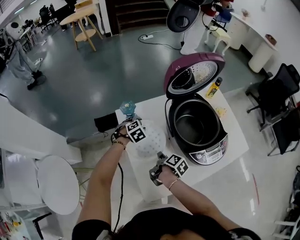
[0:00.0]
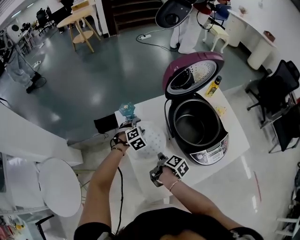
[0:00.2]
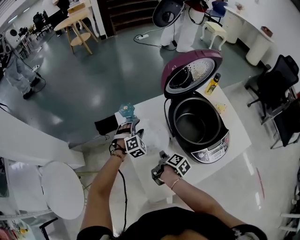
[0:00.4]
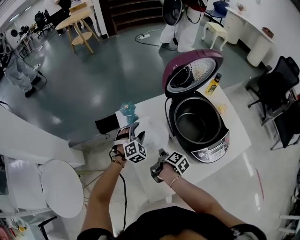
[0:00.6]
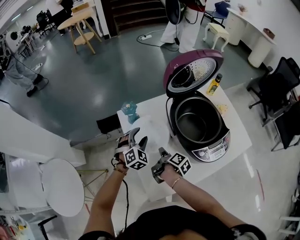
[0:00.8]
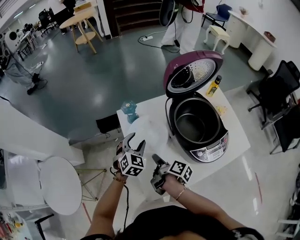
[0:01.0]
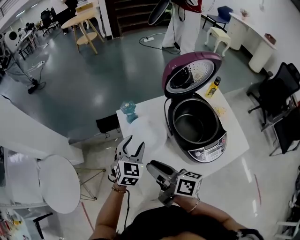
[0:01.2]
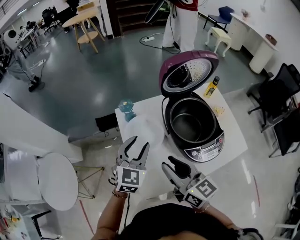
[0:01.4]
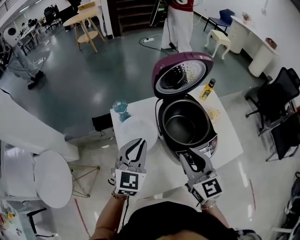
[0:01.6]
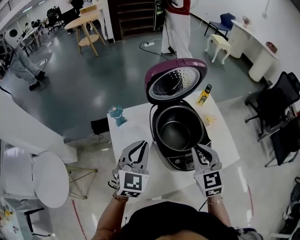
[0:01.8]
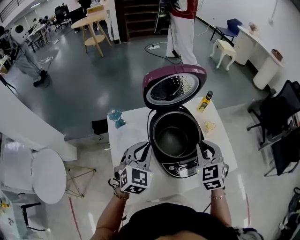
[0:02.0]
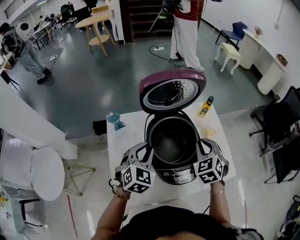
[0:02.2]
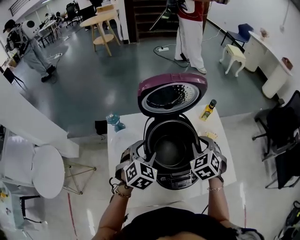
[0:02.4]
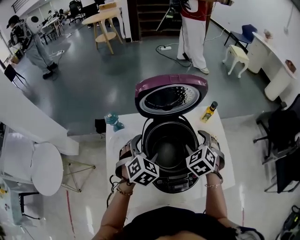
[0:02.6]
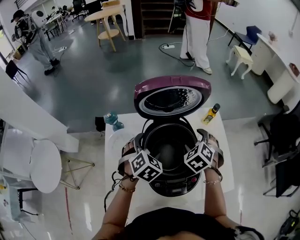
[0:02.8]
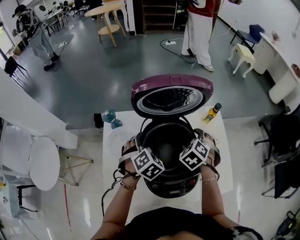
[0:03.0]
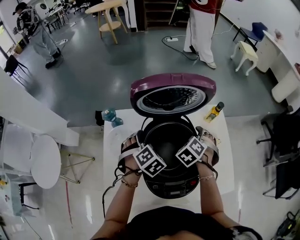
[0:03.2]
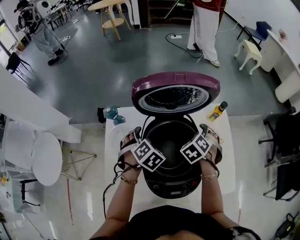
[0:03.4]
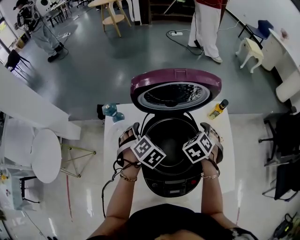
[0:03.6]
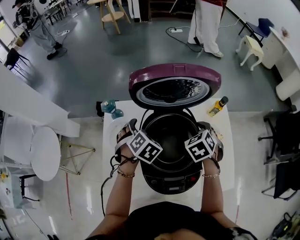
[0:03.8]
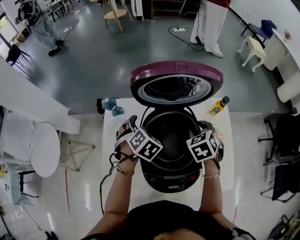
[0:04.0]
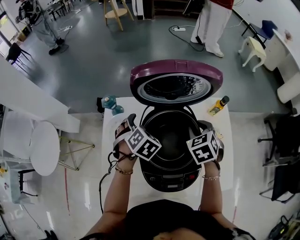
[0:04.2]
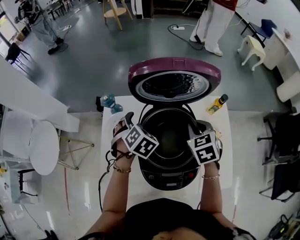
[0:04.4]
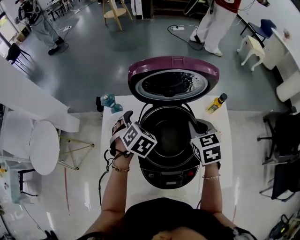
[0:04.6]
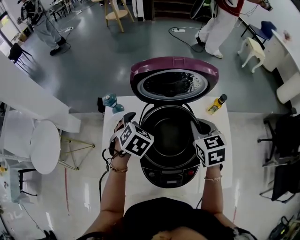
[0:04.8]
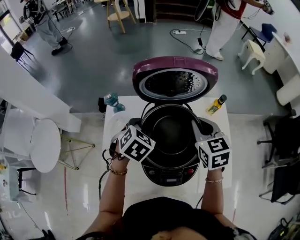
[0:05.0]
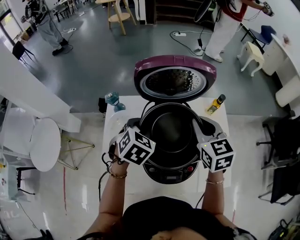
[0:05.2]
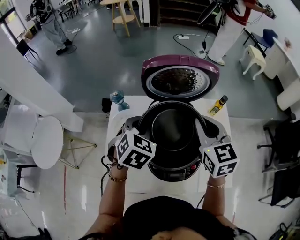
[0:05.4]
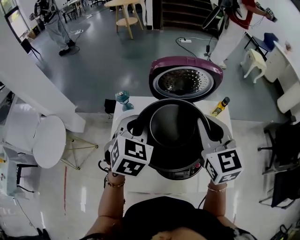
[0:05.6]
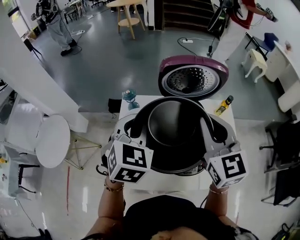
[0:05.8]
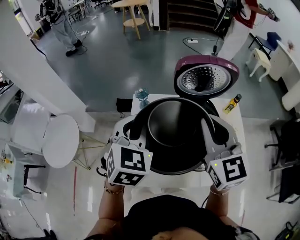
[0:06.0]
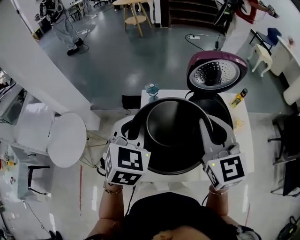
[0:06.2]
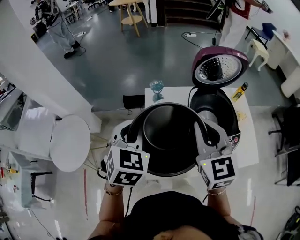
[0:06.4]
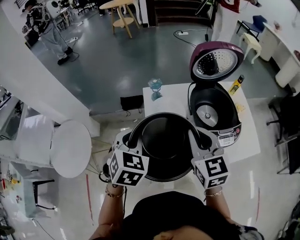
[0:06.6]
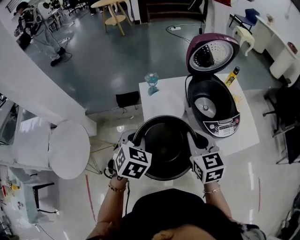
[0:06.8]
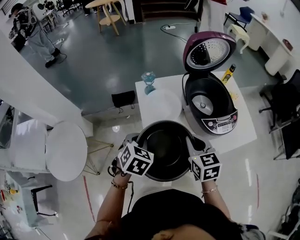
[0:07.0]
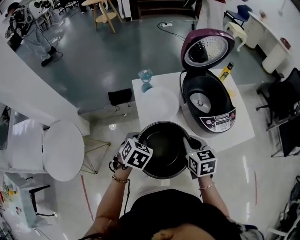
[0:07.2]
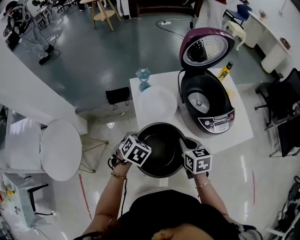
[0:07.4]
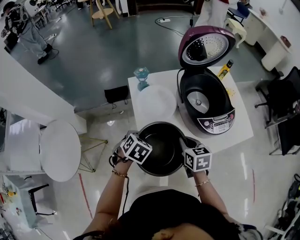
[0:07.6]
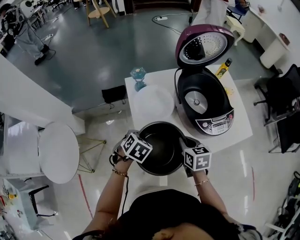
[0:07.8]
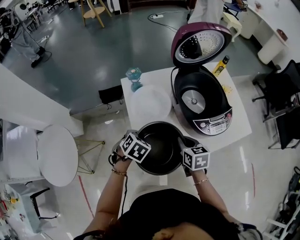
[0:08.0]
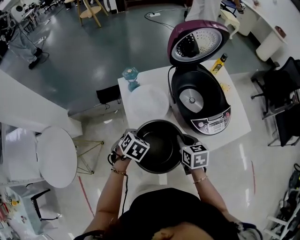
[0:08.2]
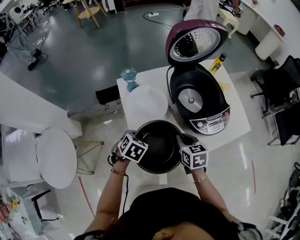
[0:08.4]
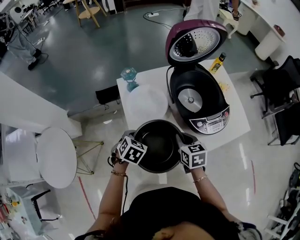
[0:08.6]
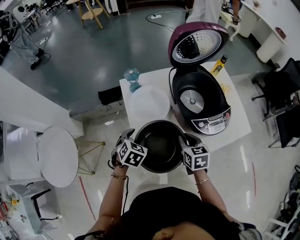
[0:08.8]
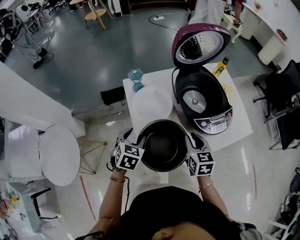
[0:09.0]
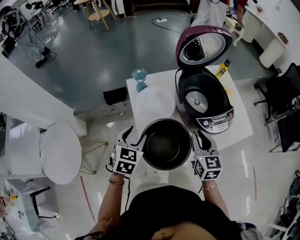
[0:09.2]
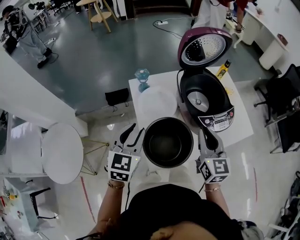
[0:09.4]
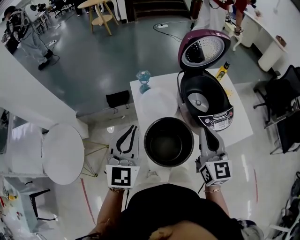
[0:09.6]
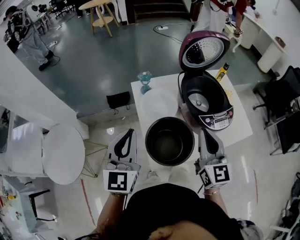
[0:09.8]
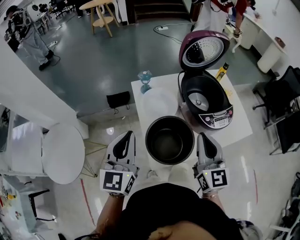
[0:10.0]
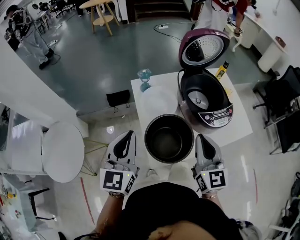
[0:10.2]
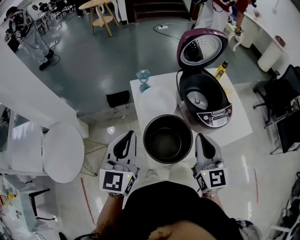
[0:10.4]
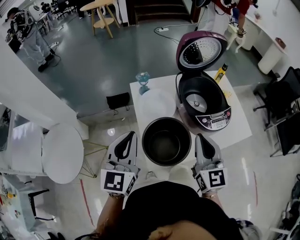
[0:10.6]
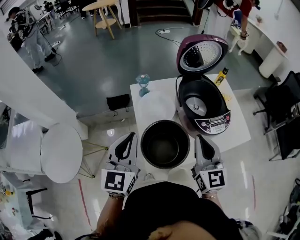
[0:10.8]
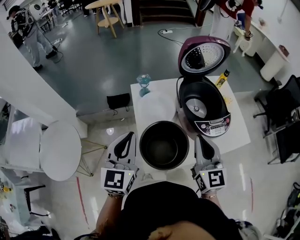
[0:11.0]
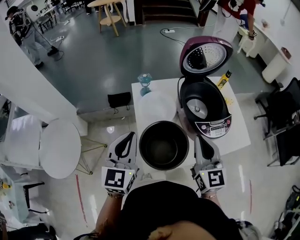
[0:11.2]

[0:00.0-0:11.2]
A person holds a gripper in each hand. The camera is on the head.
0:00.0 to 0:01.6: The right gripper travels upward by about 30 cm, and rotates around the line of its fingers by roughly 90 degrees, counterclockwise from behind; the left gripper moves upward and backward, about 30 cm, and points its fingers approximately 40 degrees further upward.
0:01.6 to 0:03.2: The grippers both shift forward, downward and to the right by some 25 cm. The right gripper points its fingers about 50 degrees further downward, and opens. Meanwhile the left gripper angles its fingers downward, by roughly 40 degrees, and opens up.
0:03.2 to 0:04.8: The left gripper moves about 5 cm, and changes its angle by roughly 20 degrees. Meanwhile the right gripper is displaced upward by some 10 cm, changes its angle by some 50 degrees, and closes.
0:04.8 to 0:06.4: Both grippers travel together to the left, upward and backward, approximately 35 cm. The right gripper swivels roughly 20 degrees, while the left gripper turns by about 20 degrees, and closes up.
0:06.4 to 0:08.0: The two grippers go some 30 cm downward. The right gripper tilts its fingers about 30 degrees downward. The left gripper angles its fingers downward, by roughly 30 degrees.
0:08.0 to 0:09.6: The grippers both shift upward by roughly 25 cm. The right gripper tilts its fingers about 40 degrees upward. The left gripper points its fingers roughly 60 degrees further upward, and opens and closes again.
0:09.6 to 0:11.2: There are only small adjustments of the grippers.

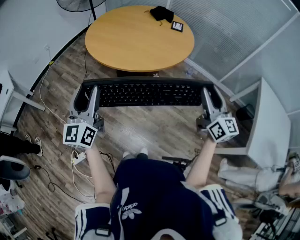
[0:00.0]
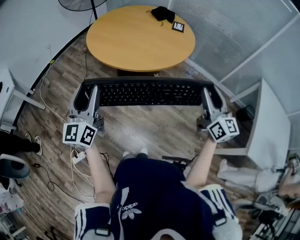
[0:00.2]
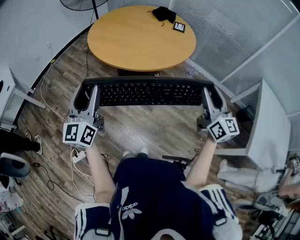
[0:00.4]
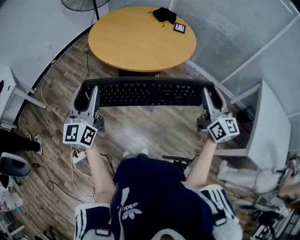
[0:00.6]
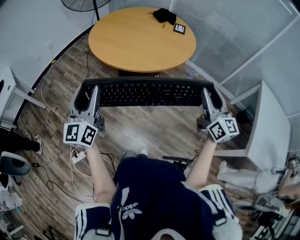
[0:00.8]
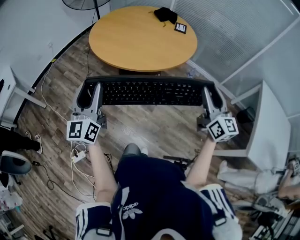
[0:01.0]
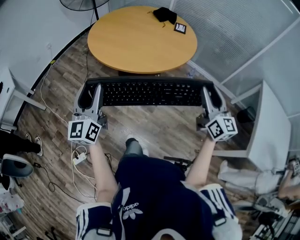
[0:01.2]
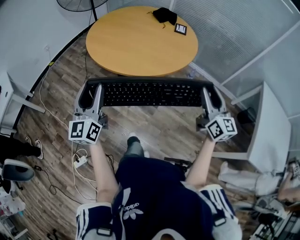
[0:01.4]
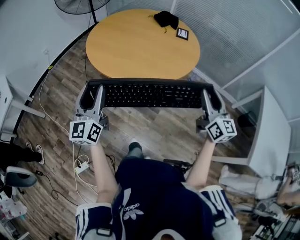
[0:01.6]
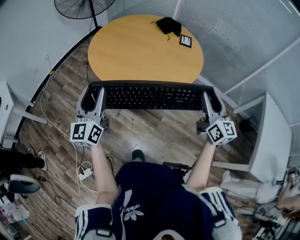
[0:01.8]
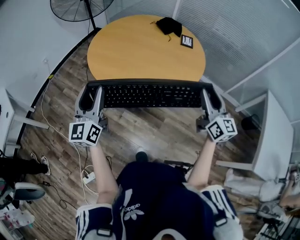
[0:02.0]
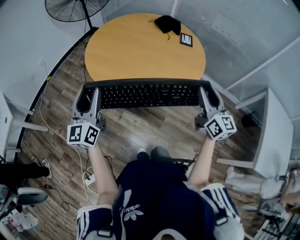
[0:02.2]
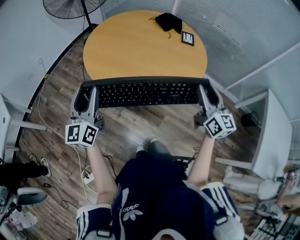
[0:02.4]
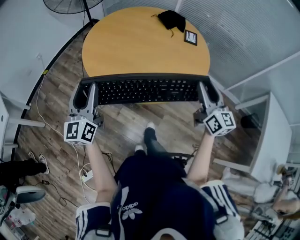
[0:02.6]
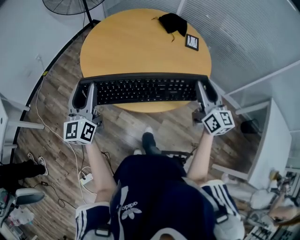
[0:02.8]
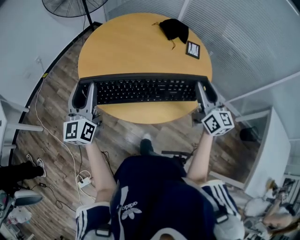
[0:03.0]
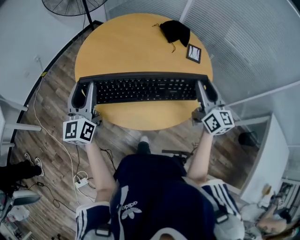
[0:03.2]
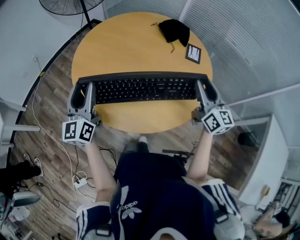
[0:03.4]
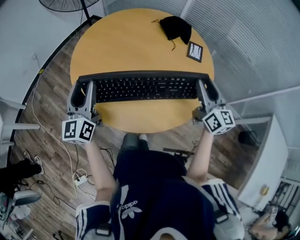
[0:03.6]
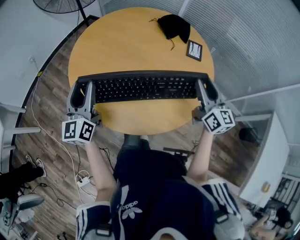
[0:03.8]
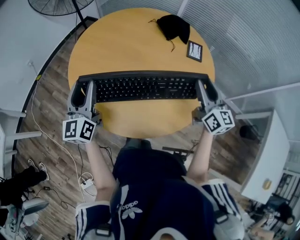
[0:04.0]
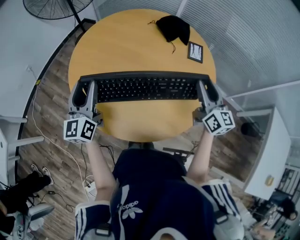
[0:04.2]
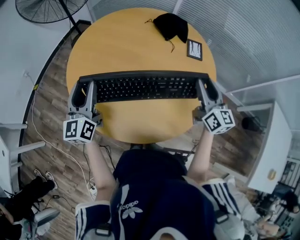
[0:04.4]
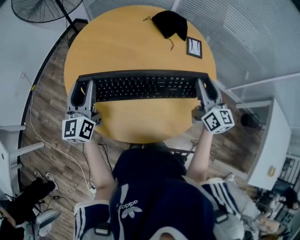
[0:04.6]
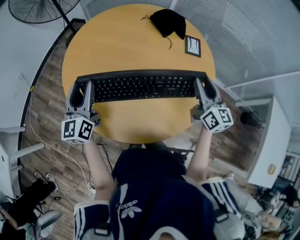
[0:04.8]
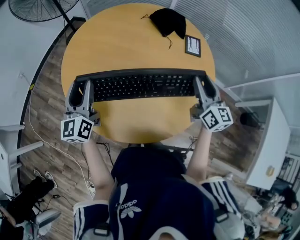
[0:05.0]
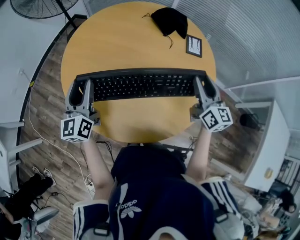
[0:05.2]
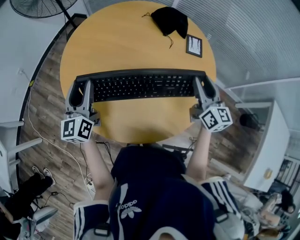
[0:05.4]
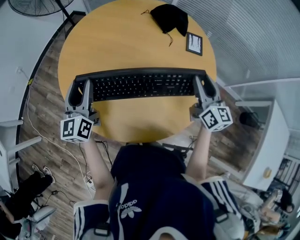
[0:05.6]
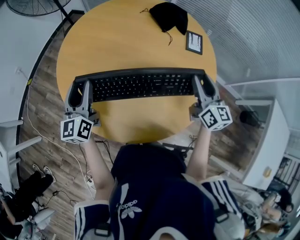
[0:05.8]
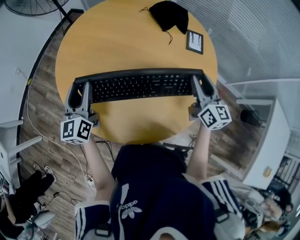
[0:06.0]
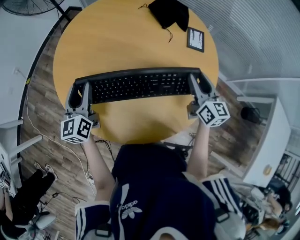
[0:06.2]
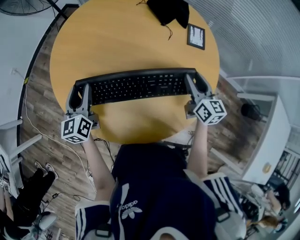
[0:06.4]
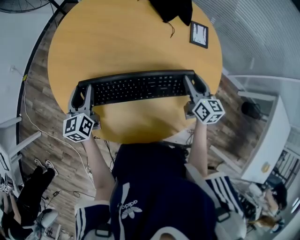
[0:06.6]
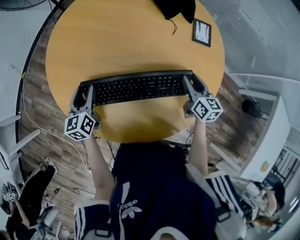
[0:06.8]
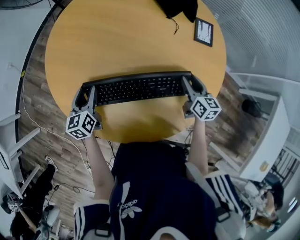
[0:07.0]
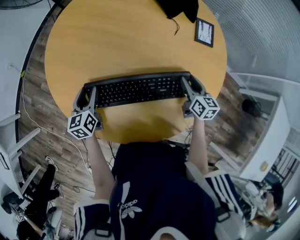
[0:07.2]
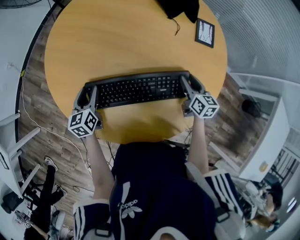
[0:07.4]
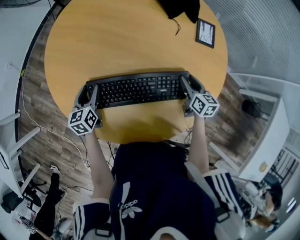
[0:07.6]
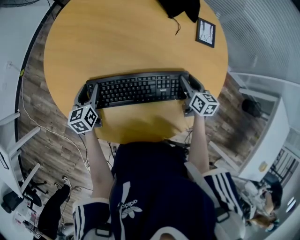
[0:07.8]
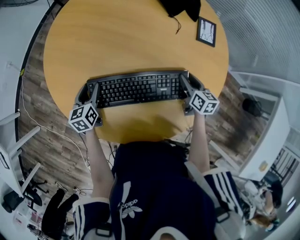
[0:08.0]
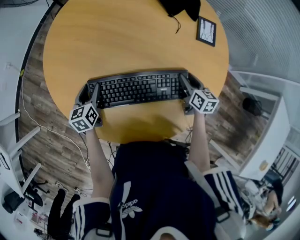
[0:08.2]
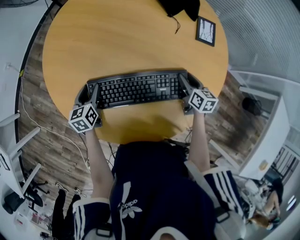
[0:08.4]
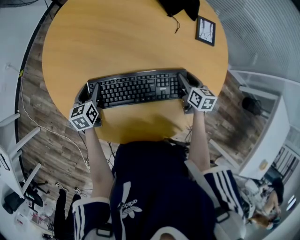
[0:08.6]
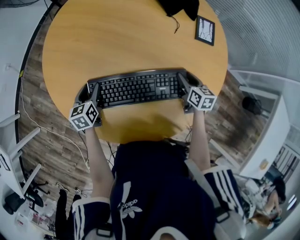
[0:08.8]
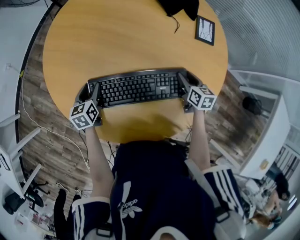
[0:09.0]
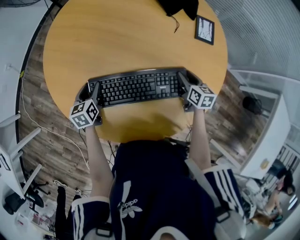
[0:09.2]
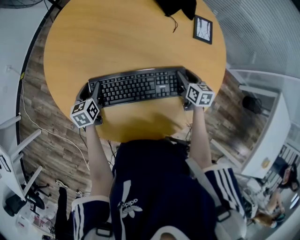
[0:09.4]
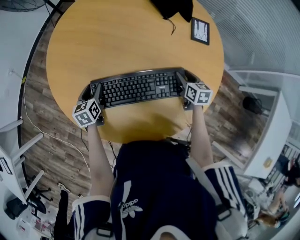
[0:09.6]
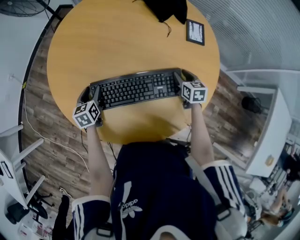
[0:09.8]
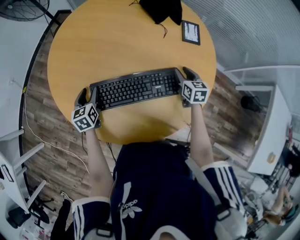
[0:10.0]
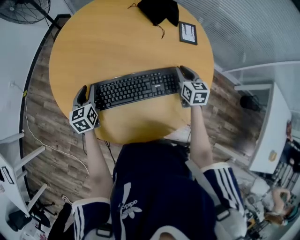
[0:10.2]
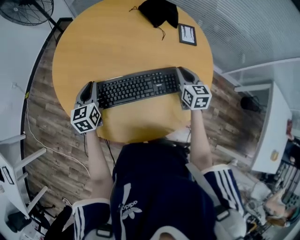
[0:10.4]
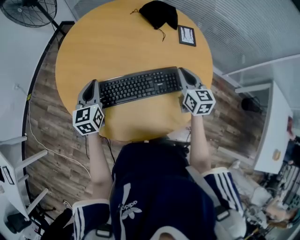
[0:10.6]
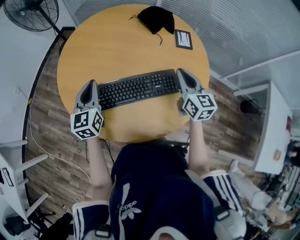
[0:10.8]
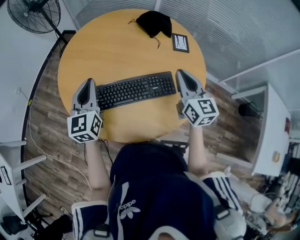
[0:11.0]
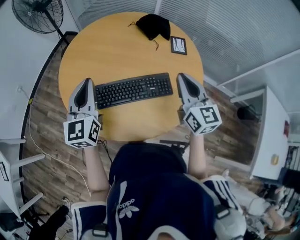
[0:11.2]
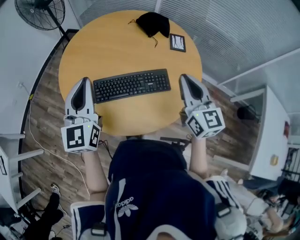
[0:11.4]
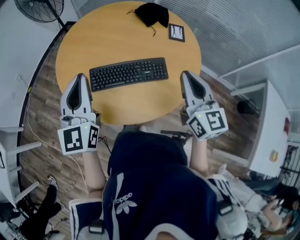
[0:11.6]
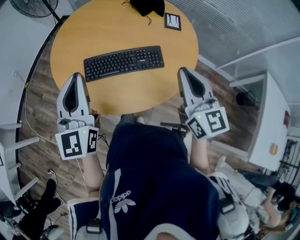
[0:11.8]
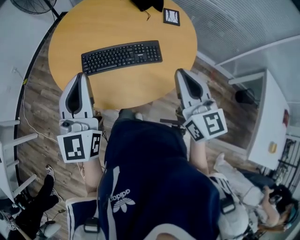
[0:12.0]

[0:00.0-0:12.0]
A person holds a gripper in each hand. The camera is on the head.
0:00.0 to 0:03.0: The grippers move only a little.
0:03.0 to 0:04.4: The left gripper ends up roughly 5 cm from where it was.
0:04.4 to 0:06.0: The grippers make only small movements.
0:06.0 to 0:07.6: The grippers both shift downward by some 20 cm. The left gripper turns by about 30 degrees, while the right gripper turns by roughly 30 degrees.
0:07.6 to 0:09.0: The grippers stay close to where they were, moving slightly.
0:09.0 to 0:10.4: The grippers both shift upward by some 10 cm. The right gripper changes its angle by about 20 degrees, and closes, while the left gripper turns by about 20 degrees, and closes its fingers.
0:10.4 to 0:12.0: The left gripper travels upward, backward and to the right by about 35 cm, and angles its fingers upward, by approximately 30 degrees, while the right gripper moves backward and upward, approximately 35 cm, and rotates some 30 degrees.
